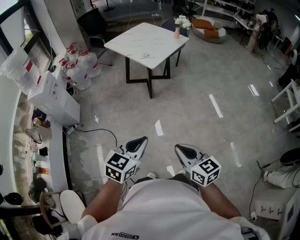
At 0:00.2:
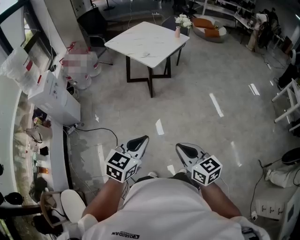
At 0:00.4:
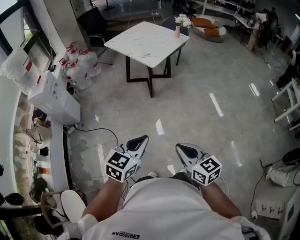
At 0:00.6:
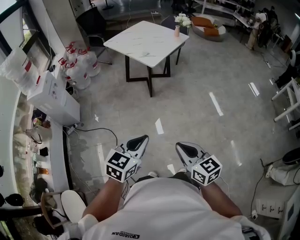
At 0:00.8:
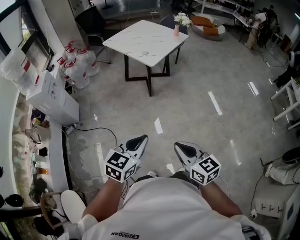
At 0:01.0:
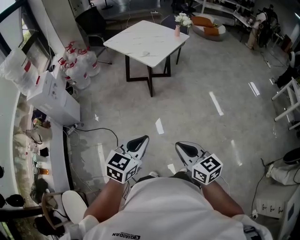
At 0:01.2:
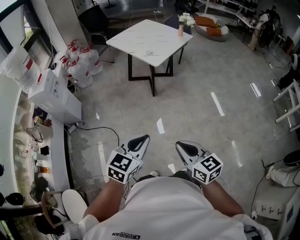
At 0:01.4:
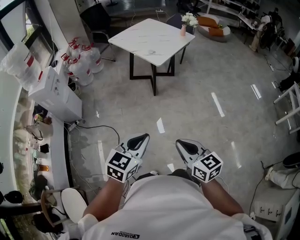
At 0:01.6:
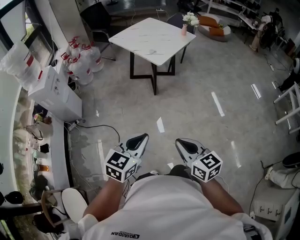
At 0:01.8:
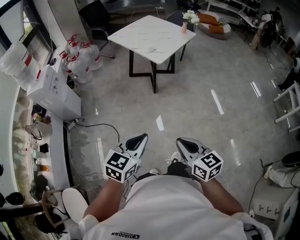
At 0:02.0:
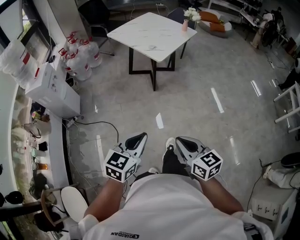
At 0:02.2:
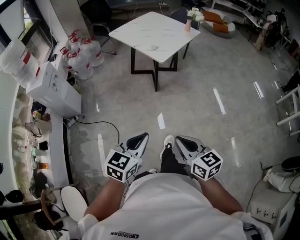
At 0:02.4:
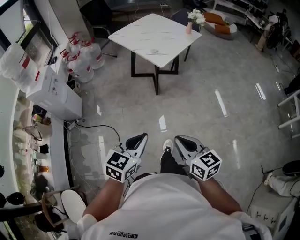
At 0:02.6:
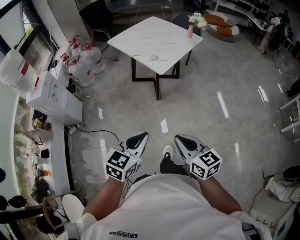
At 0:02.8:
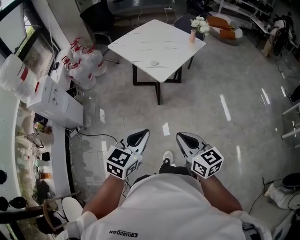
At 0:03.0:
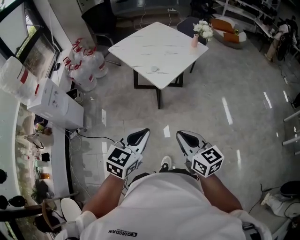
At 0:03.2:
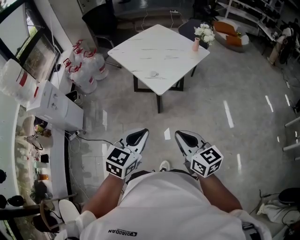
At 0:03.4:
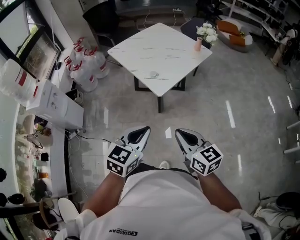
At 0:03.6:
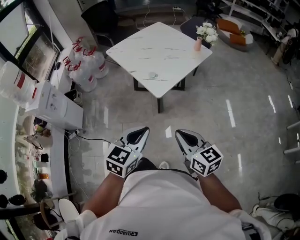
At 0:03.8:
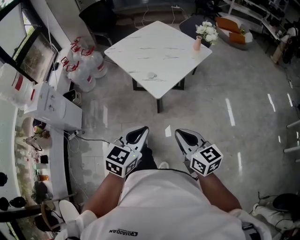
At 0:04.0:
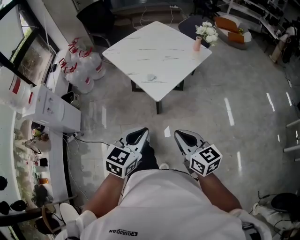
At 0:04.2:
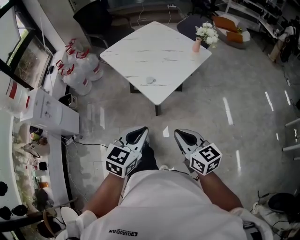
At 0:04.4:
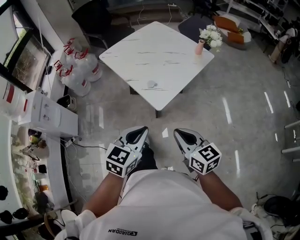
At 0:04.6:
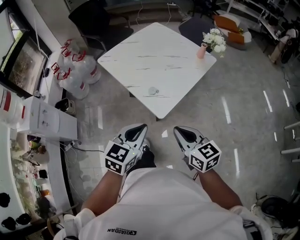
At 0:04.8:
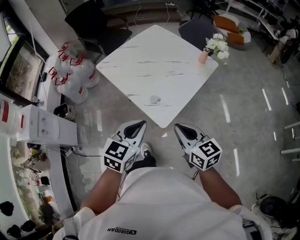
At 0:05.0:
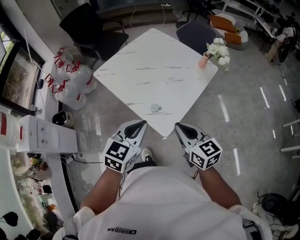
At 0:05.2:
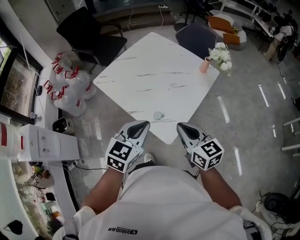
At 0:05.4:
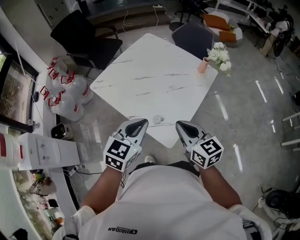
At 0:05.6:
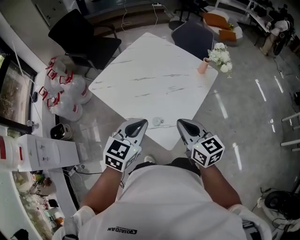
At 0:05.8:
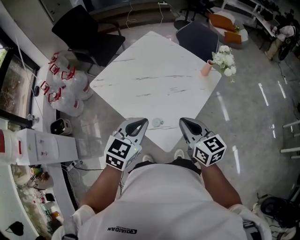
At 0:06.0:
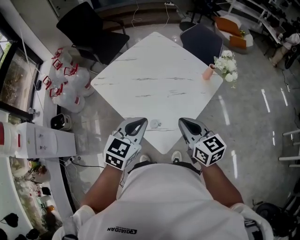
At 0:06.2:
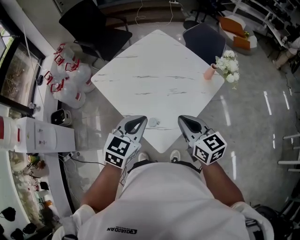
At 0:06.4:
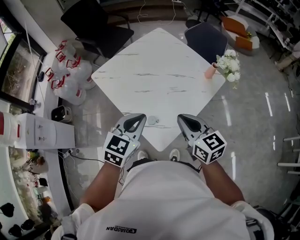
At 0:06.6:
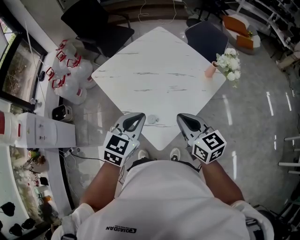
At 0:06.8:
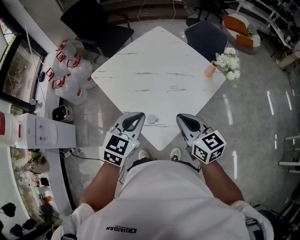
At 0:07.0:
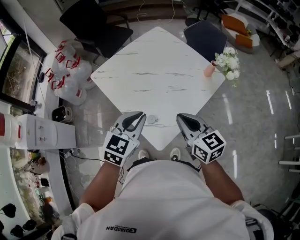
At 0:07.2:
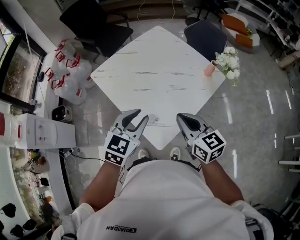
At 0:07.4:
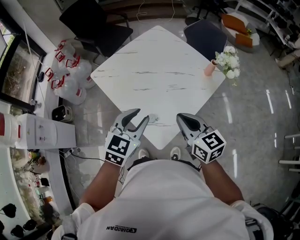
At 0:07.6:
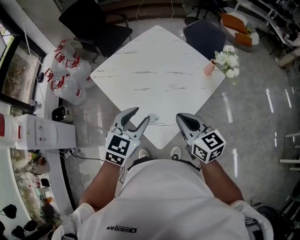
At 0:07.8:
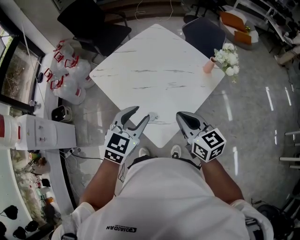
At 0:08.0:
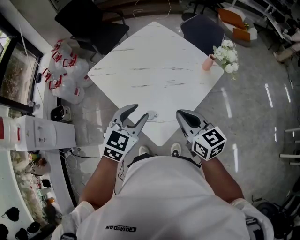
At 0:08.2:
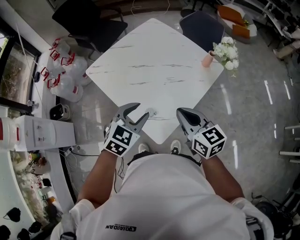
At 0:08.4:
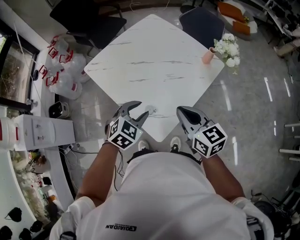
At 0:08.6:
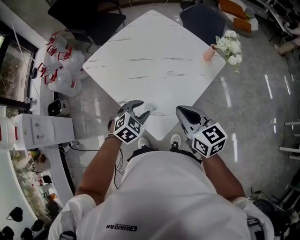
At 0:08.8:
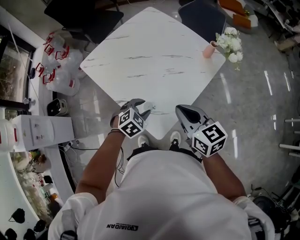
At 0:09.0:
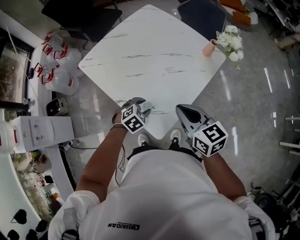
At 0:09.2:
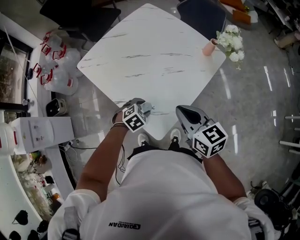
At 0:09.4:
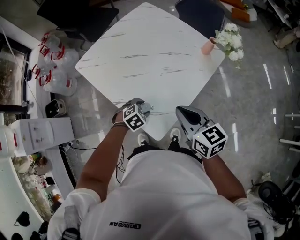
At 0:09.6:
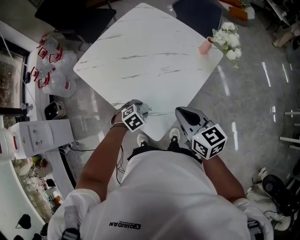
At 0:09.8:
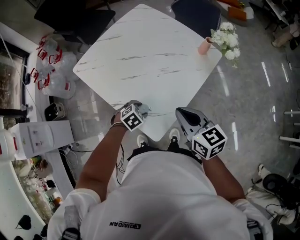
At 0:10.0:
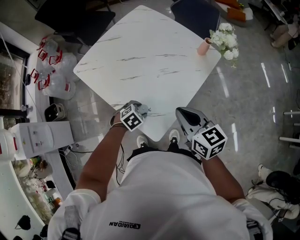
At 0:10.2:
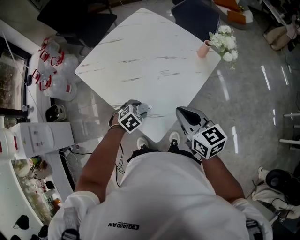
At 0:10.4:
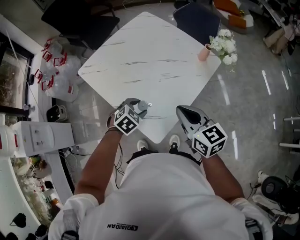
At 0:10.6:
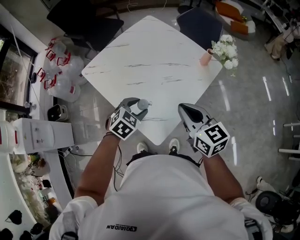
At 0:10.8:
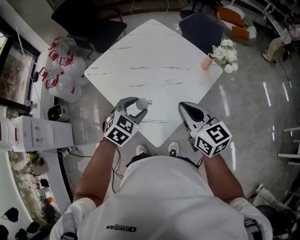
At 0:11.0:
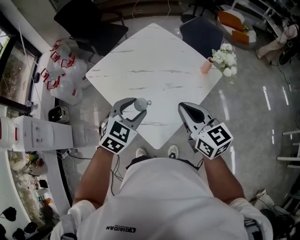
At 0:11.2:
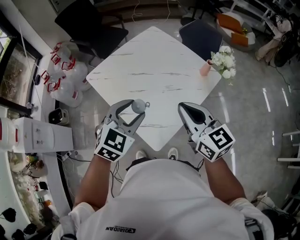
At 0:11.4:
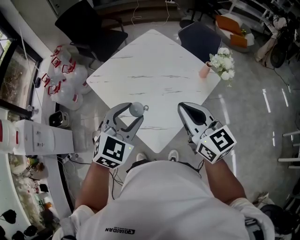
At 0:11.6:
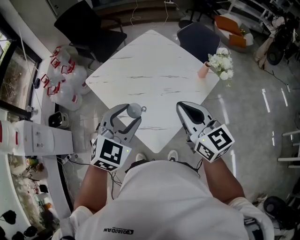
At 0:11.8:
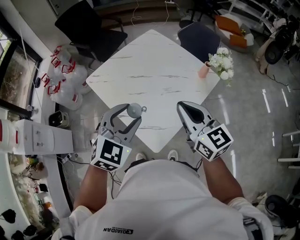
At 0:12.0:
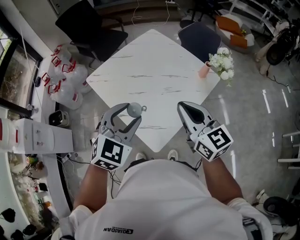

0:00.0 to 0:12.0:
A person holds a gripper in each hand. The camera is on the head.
0:00.0 to 0:01.6: The left gripper changes place by about 5 cm, while the right gripper ends up roughly 5 cm from where it was.
0:01.6 to 0:03.0: The grippers both shift forward by approximately 30 cm.
0:03.0 to 0:04.4: The two grippers go about 20 cm forward.
0:04.4 to 0:06.0: Both grippers travel together forward, approximately 30 cm.
0:06.0 to 0:07.6: The left gripper opens up.
0:07.6 to 0:09.0: The left gripper moves downward, some 25 cm, and points its fingers approximately 30 degrees further downward.
0:09.0 to 0:10.4: The left gripper ends up approximately 5 cm from where it was.
0:10.4 to 0:12.0: The right gripper goes about 10 cm upward. The left gripper shifts some 25 cm upward, and swivels roughly 30 degrees.

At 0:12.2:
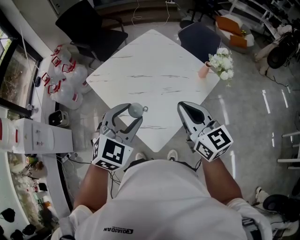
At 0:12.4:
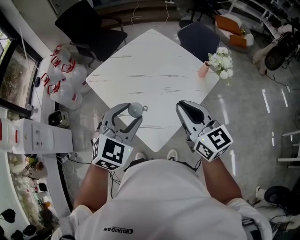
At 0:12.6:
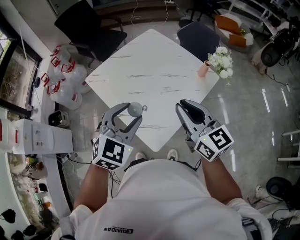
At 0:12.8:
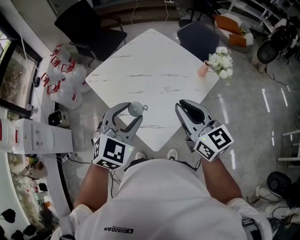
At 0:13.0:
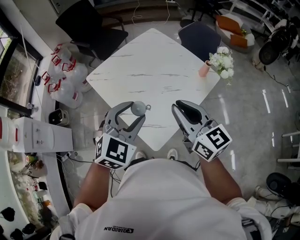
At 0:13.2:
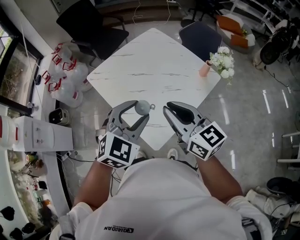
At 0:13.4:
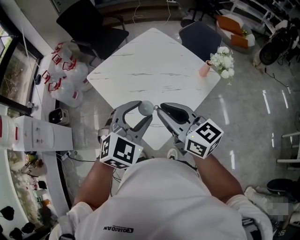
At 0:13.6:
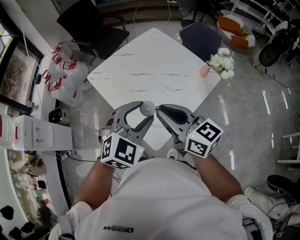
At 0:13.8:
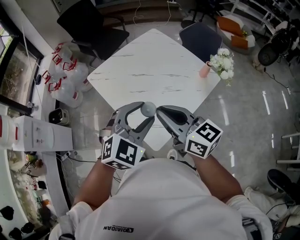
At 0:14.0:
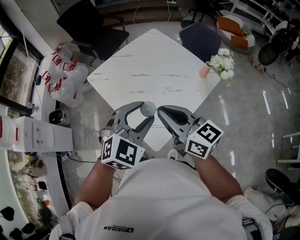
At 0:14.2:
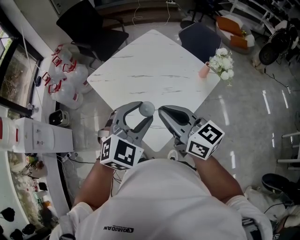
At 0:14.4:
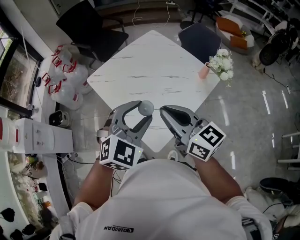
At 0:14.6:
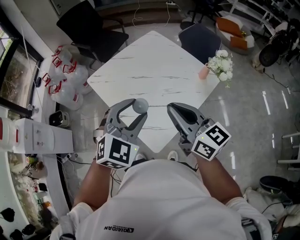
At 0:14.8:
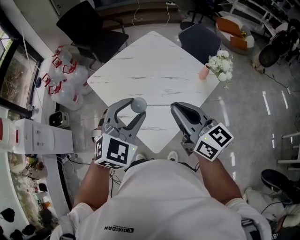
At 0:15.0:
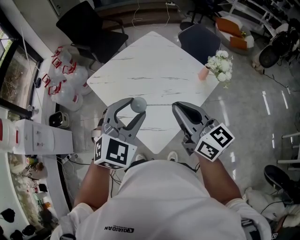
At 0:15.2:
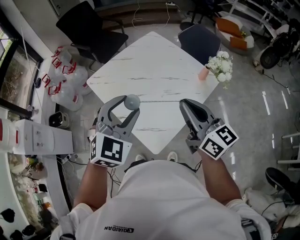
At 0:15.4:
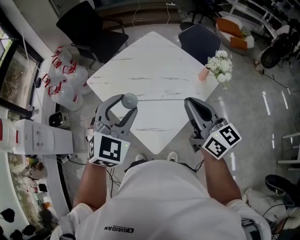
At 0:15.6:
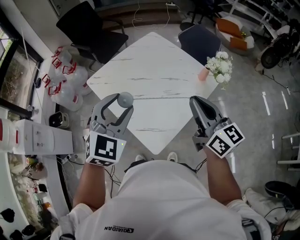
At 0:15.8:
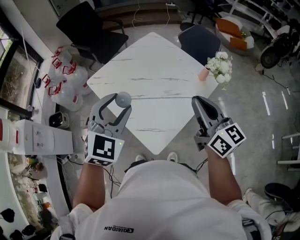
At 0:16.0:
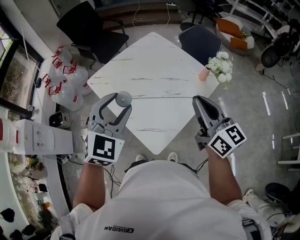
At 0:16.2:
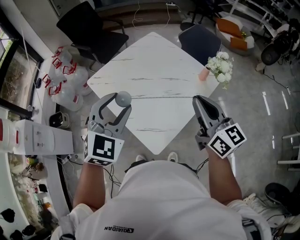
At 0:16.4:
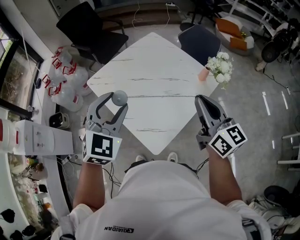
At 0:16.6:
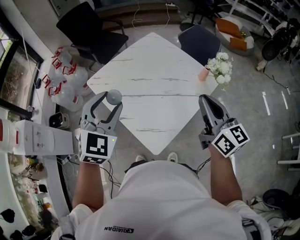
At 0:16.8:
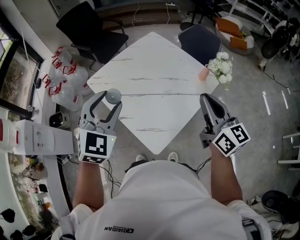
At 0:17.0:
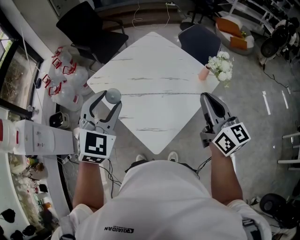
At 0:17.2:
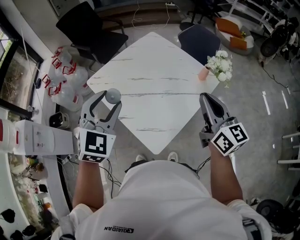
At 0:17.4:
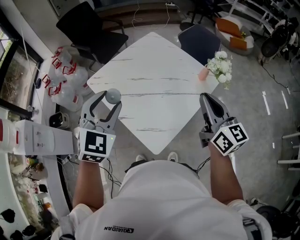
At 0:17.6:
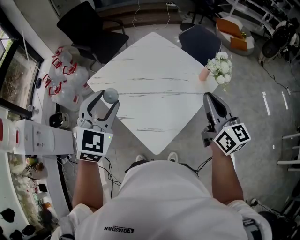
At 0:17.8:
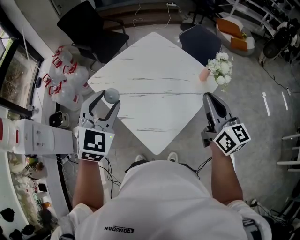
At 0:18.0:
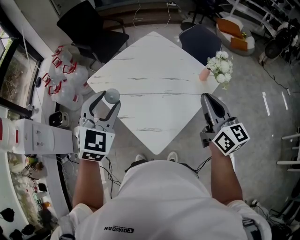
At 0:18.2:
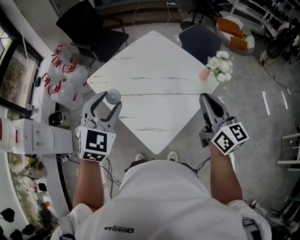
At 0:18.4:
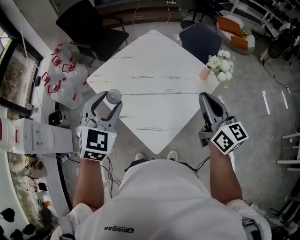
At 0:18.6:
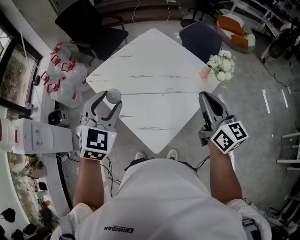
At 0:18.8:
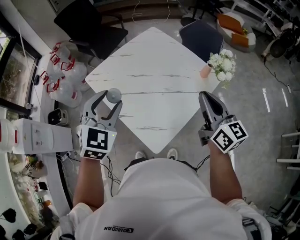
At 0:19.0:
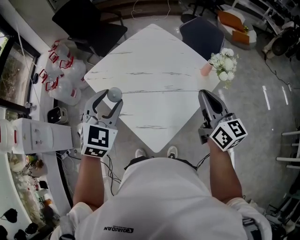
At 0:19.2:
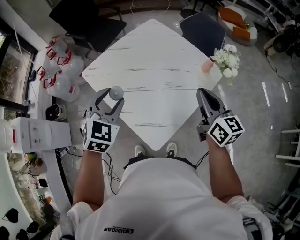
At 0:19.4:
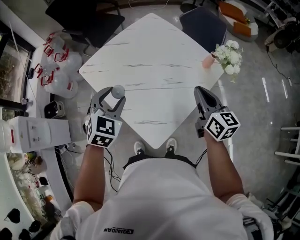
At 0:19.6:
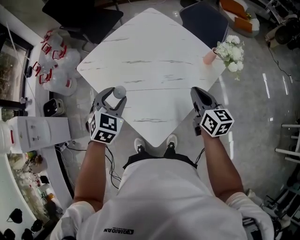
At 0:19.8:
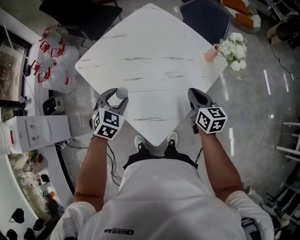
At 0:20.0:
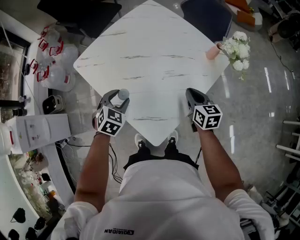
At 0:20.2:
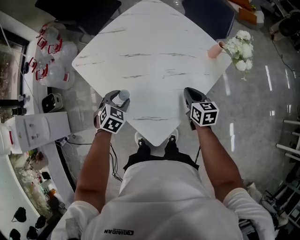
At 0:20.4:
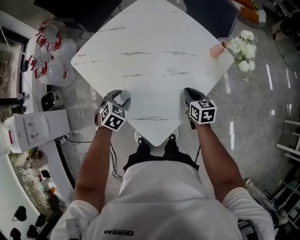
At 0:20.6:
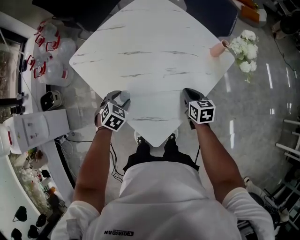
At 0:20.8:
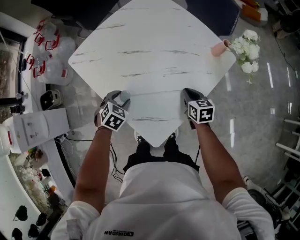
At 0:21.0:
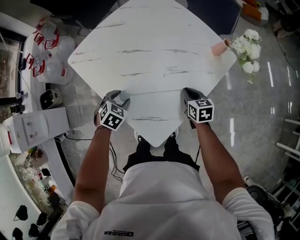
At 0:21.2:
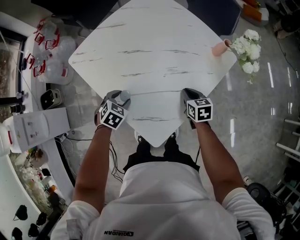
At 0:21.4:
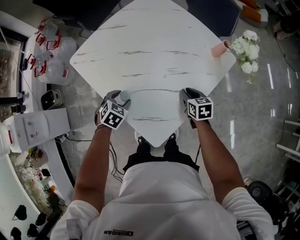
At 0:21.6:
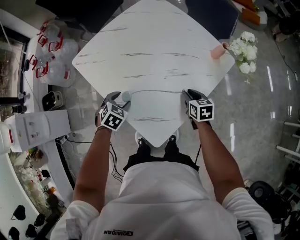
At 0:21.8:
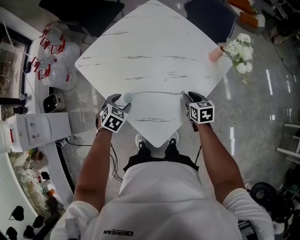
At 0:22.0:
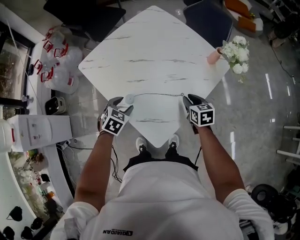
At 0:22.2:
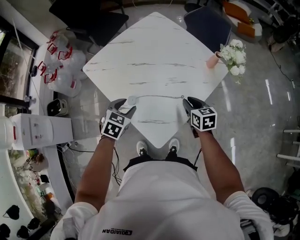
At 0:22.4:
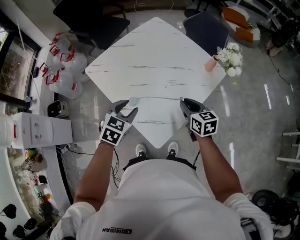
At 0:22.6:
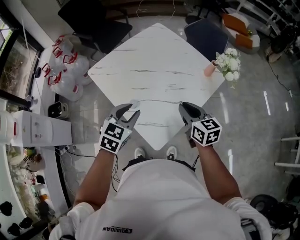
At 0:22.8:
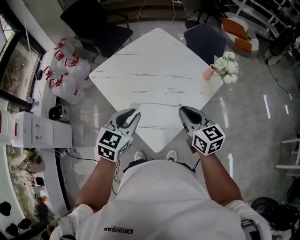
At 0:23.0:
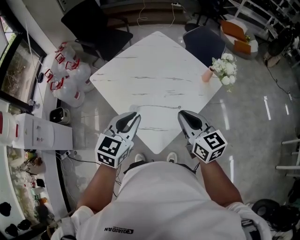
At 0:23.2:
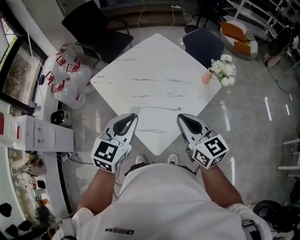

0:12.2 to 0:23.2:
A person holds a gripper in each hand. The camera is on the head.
0:12.2 to 0:13.8: The right gripper goes approximately 10 cm to the left, and changes its angle by about 20 degrees.
0:13.8 to 0:15.4: The left gripper ends up about 5 cm from where it was; the right gripper travels to the right by about 10 cm.
0:15.4 to 0:17.0: The right gripper travels to the right by roughly 5 cm; the left gripper shifts by approximately 5 cm.
0:17.0 to 0:18.4: There are only small adjustments of the grippers.
0:18.4 to 0:20.0: Both grippers move downward, some 25 cm. The left gripper changes its angle by approximately 30 degrees. Meanwhile the right gripper rotates about 30 degrees.
0:20.0 to 0:21.6: Both grippers travel together downward, some 10 cm.
0:21.6 to 0:23.2: The right gripper travels upward and backward by approximately 35 cm, points its fingers roughly 40 degrees further upward, and closes its fingers, while the left gripper shifts approximately 30 cm upward, tips its fingers upward by some 40 degrees, and closes up.

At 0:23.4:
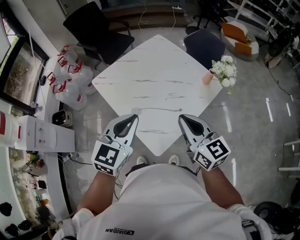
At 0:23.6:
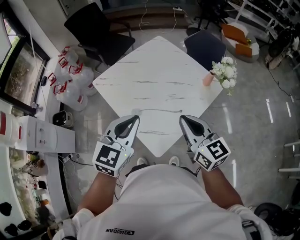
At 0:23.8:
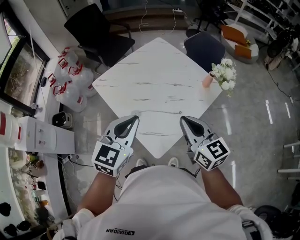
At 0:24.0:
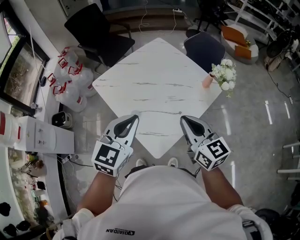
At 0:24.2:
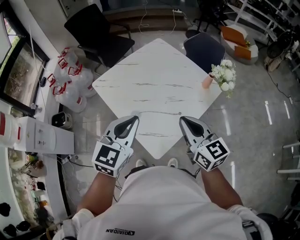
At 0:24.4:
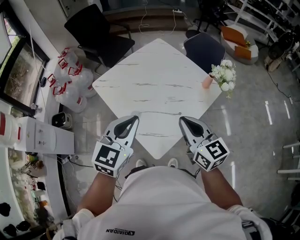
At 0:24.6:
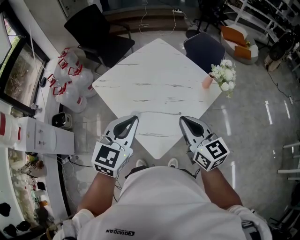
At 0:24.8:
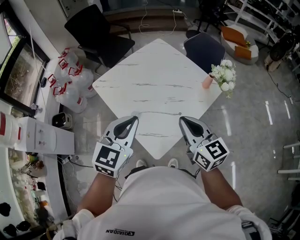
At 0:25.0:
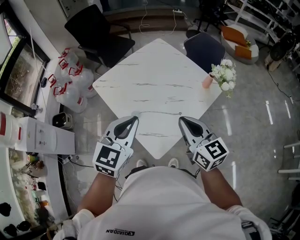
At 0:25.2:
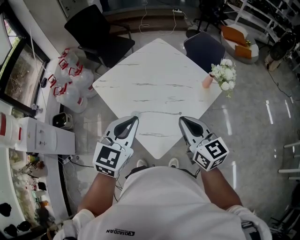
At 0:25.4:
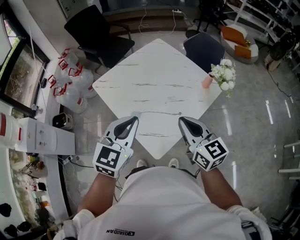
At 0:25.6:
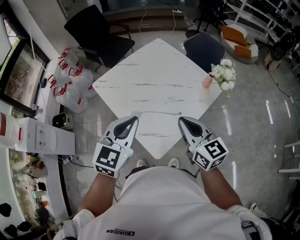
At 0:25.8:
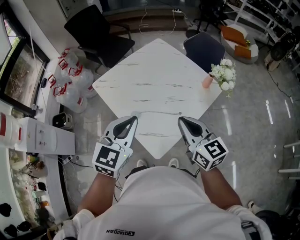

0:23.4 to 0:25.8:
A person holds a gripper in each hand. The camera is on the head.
0:23.4 to 0:24.6: The grippers make only small movements.
0:24.6 to 0:25.8: The two grippers keep their place.
